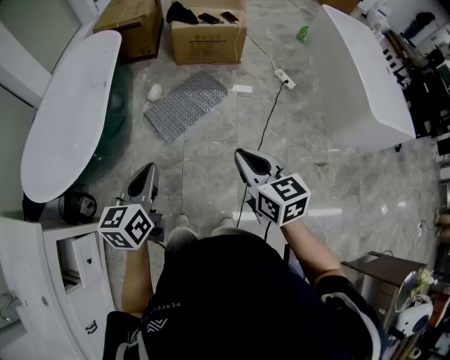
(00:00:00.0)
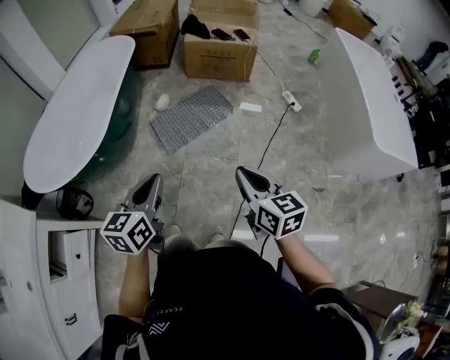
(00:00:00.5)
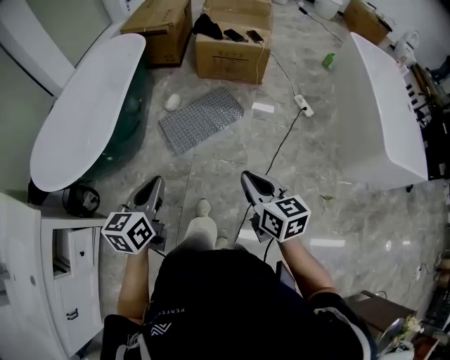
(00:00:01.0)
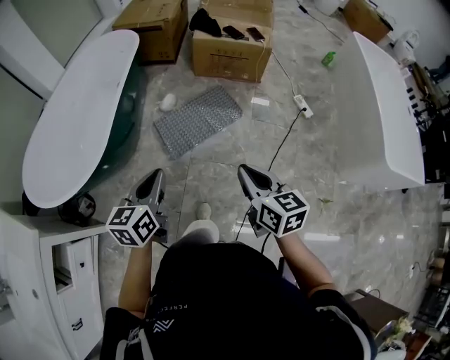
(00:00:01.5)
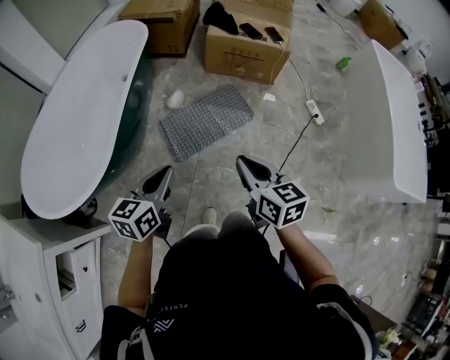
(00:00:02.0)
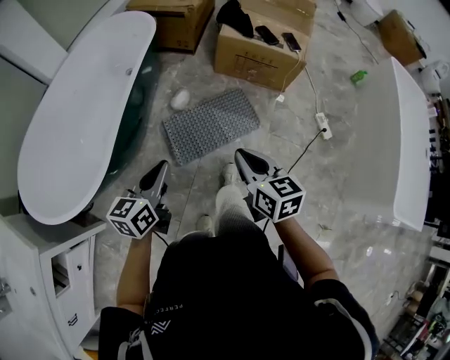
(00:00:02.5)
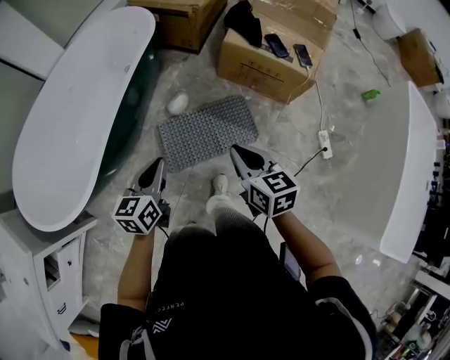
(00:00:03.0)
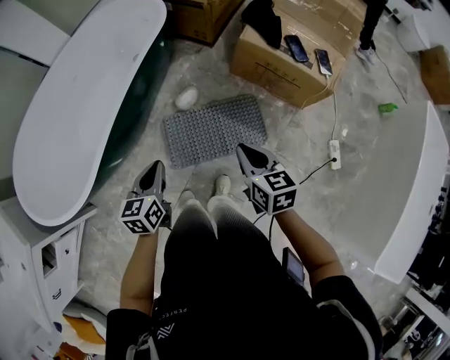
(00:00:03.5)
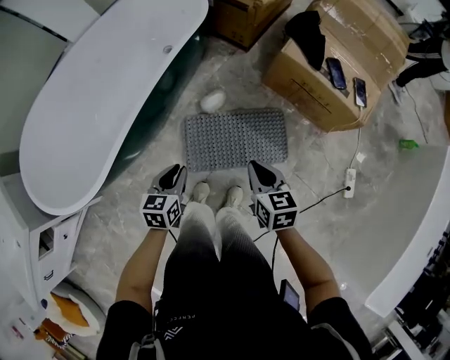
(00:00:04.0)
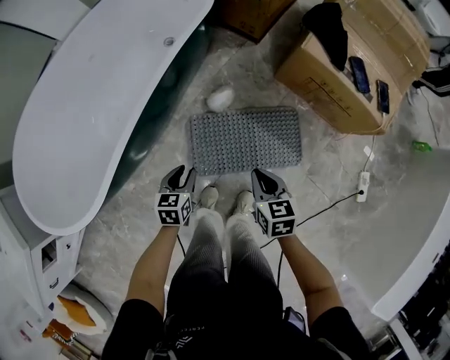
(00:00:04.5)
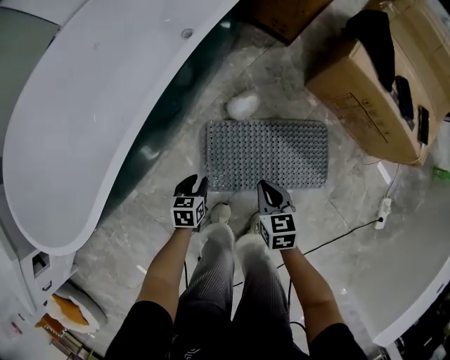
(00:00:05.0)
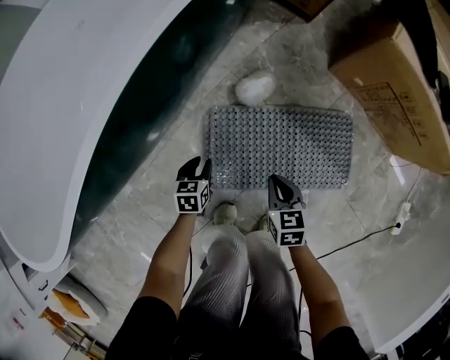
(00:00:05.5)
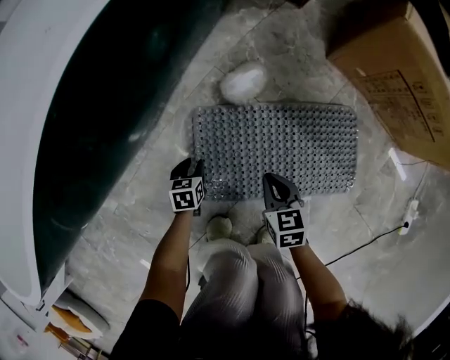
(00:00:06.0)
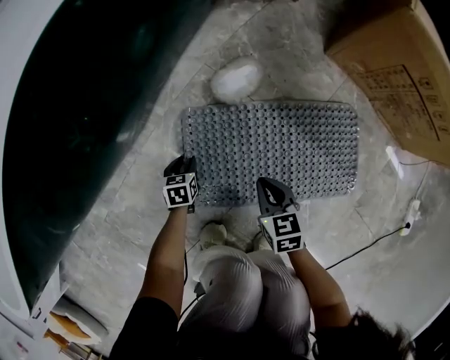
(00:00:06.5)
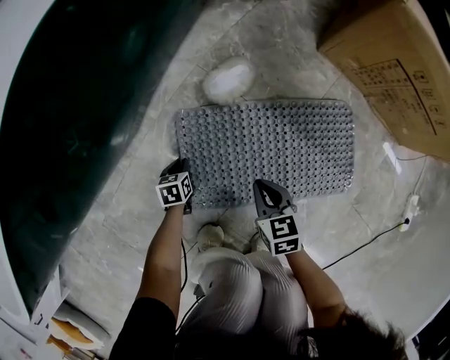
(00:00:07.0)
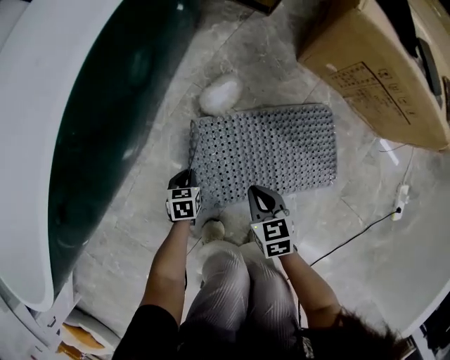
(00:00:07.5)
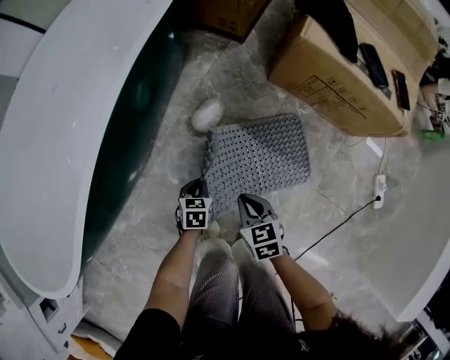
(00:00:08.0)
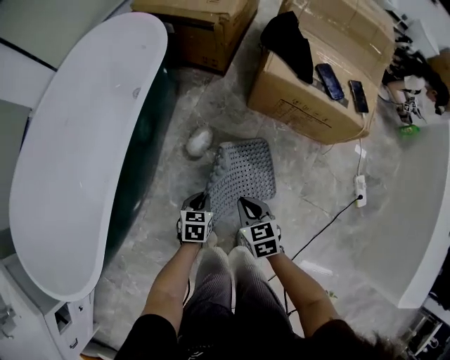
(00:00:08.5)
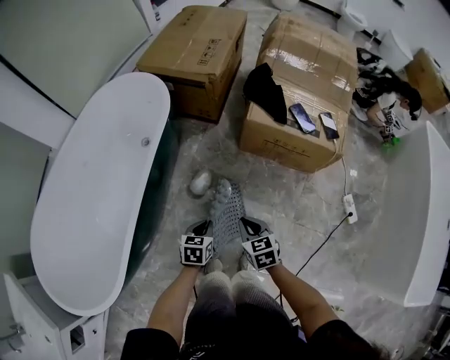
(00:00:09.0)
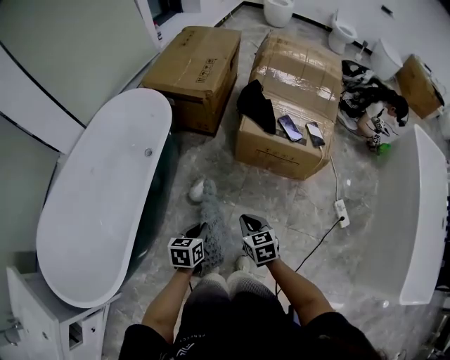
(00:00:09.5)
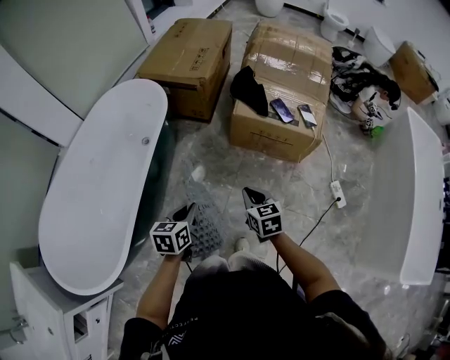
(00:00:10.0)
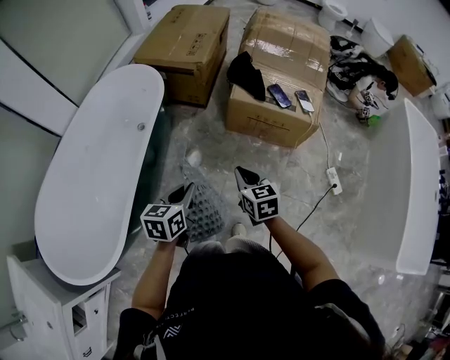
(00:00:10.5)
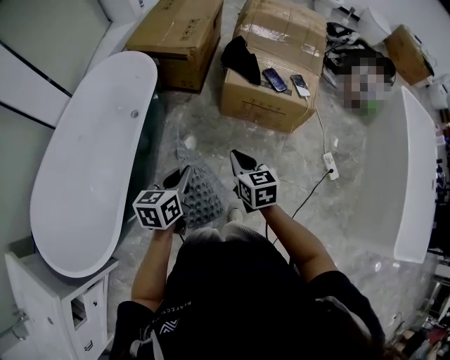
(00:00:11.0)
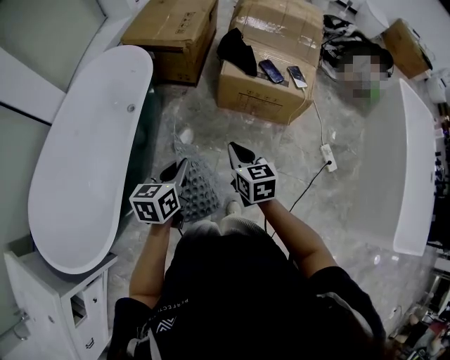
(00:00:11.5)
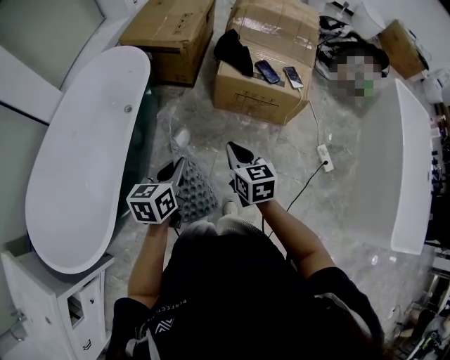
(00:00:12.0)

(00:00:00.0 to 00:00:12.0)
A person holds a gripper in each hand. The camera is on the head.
00:00:00.0 - 00:00:02.0: Both grippers travel together forward, approximately 20 cm.
00:00:02.0 - 00:00:04.0: The left gripper ends up approximately 35 cm from where it was, and rotates about 30 degrees; the right gripper changes place by roughly 40 cm, and swivels about 20 degrees.
00:00:04.0 - 00:00:06.0: Both grippers move downward, about 50 cm. The left gripper changes its angle by some 20 degrees.
00:00:06.0 - 00:00:08.0: The left gripper goes roughly 25 cm upward and to the right, and closes; the right gripper heads upward, covering roughly 20 cm.
00:00:08.0 - 00:00:10.0: The two grippers go roughly 40 cm upward. The left gripper rotates some 30 degrees.
00:00:10.0 - 00:00:12.0: Both grippers travel together upward, some 5 cm.

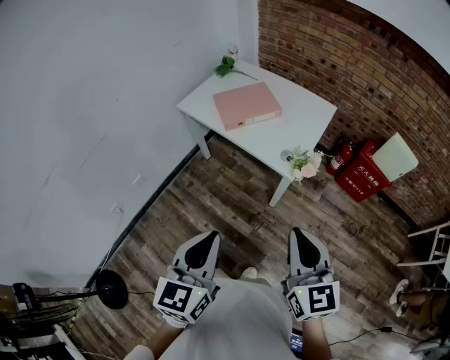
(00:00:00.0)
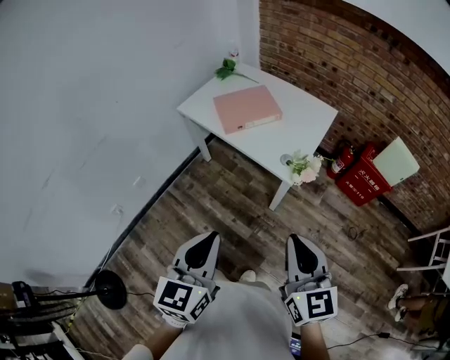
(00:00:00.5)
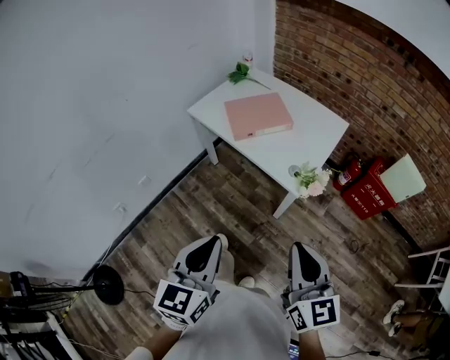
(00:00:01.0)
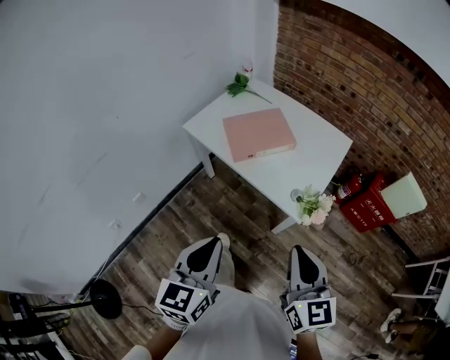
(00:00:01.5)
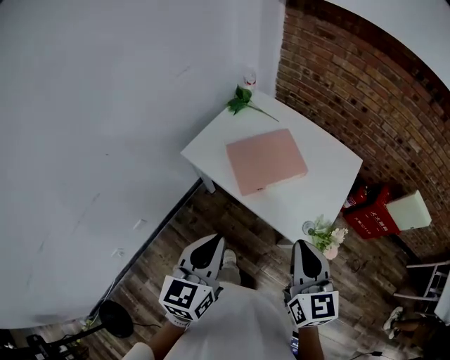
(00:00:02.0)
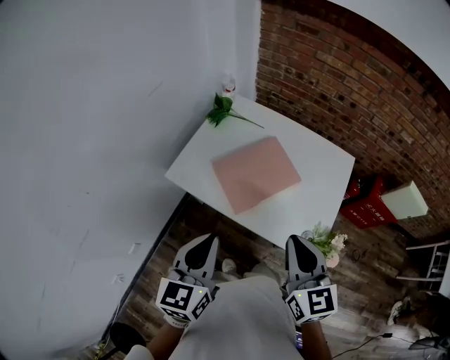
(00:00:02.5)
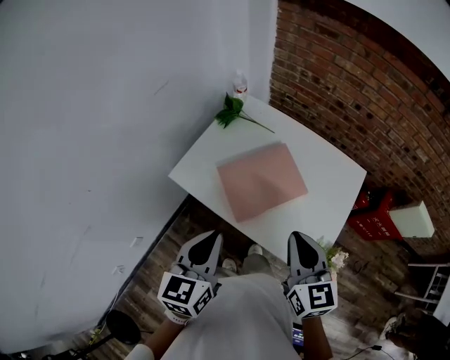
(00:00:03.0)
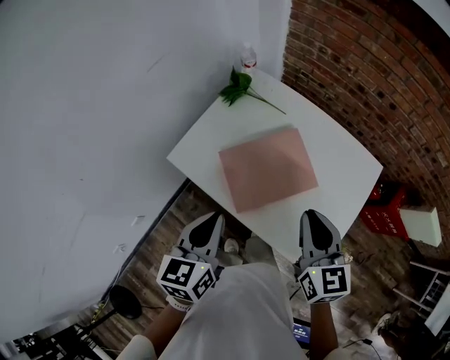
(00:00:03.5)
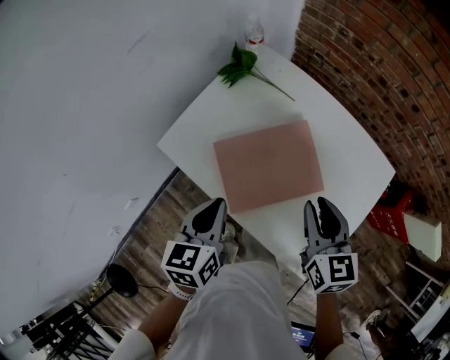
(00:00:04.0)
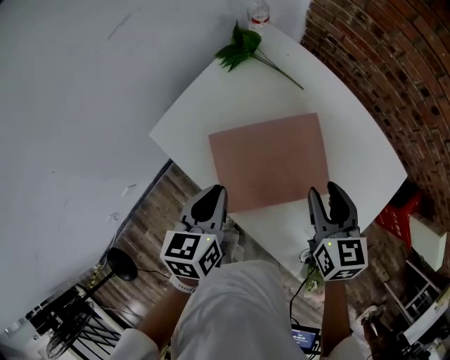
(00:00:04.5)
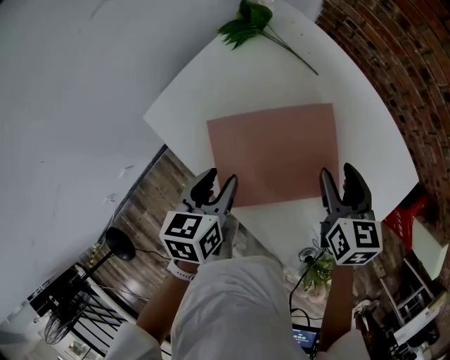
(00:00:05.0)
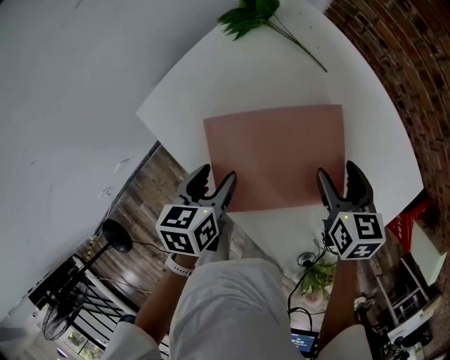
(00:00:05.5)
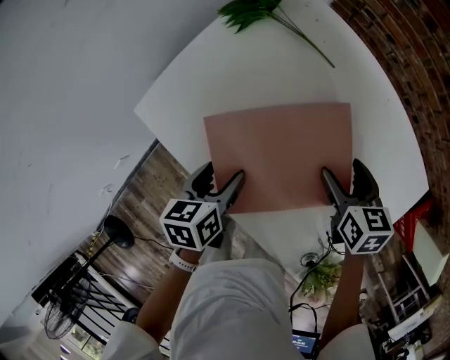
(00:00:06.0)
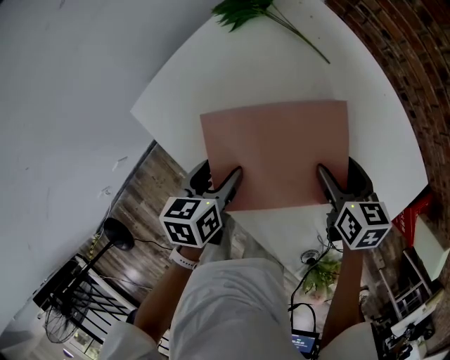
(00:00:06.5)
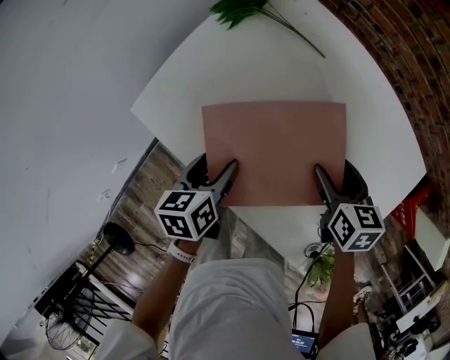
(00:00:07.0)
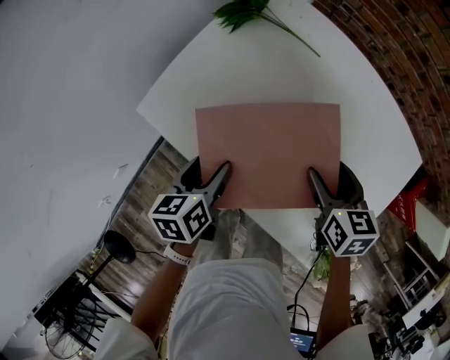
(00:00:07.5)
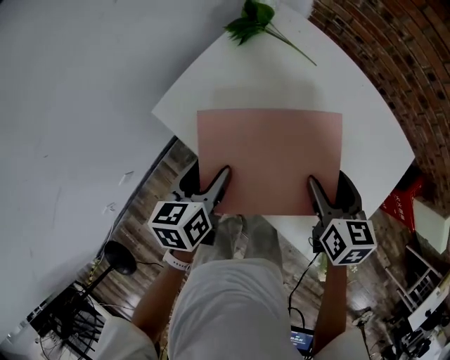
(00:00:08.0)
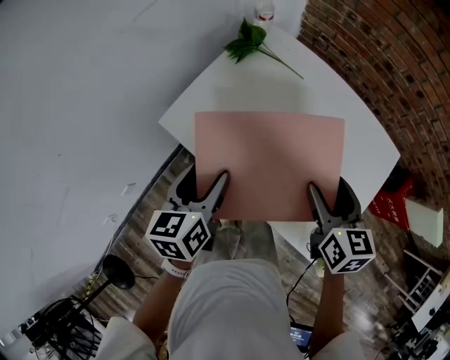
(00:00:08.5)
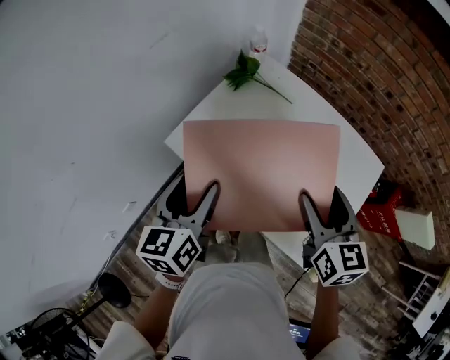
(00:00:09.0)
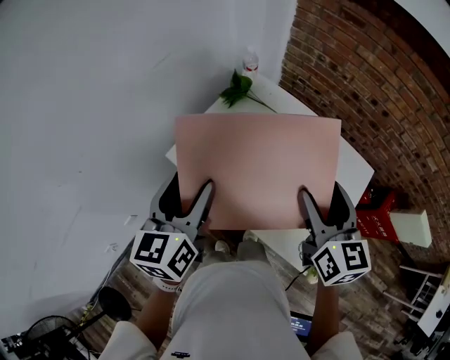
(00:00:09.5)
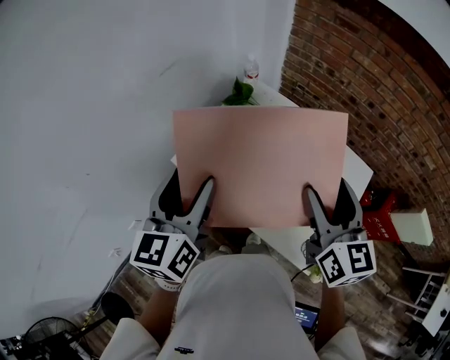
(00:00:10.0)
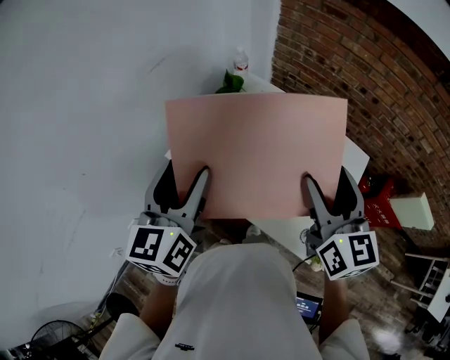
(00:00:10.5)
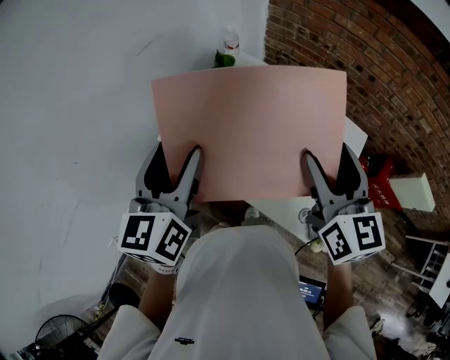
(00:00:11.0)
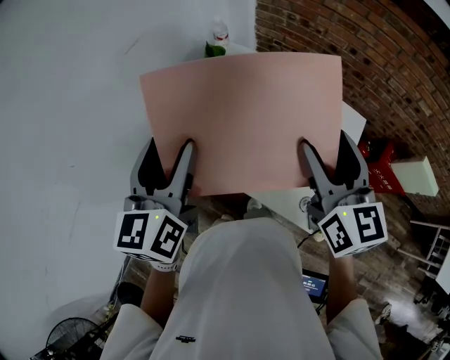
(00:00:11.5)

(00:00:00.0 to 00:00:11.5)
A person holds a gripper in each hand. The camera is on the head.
00:00:00.0 - 00:00:02.0: The two grippers go about 30 cm forward.
00:00:02.0 - 00:00:04.0: The grippers both shift forward and downward by approximately 30 cm. The left gripper swivels about 20 degrees.
00:00:04.0 - 00:00:06.0: The right gripper shifts some 20 cm downward and forward, turns by about 20 degrees, and opens up, while the left gripper is displaced downward by about 20 cm, turns by some 20 degrees, and opens.
00:00:06.0 - 00:00:07.5: The right gripper shifts approximately 5 cm backward.
00:00:07.5 - 00:00:09.5: The grippers both shift upward by some 30 cm. The left gripper swivels roughly 40 degrees. Meanwhile the right gripper turns by approximately 30 degrees.
00:00:09.5 - 00:00:11.5: The left gripper ends up roughly 5 cm from where it was. Meanwhile the right gripper is displaced upward by some 5 cm.

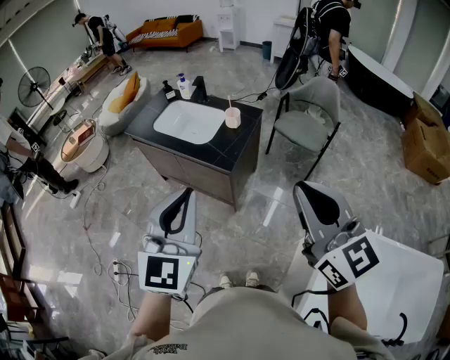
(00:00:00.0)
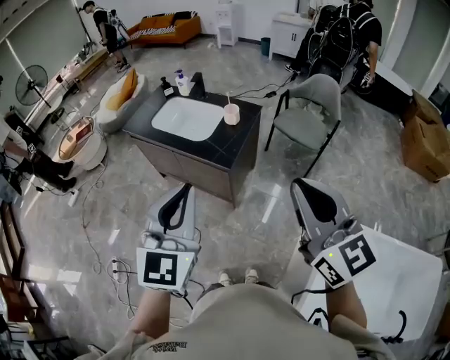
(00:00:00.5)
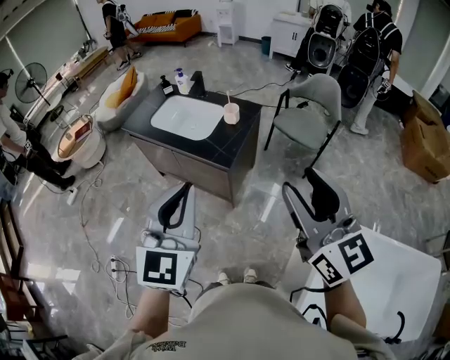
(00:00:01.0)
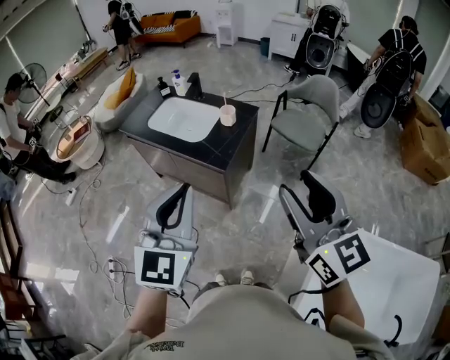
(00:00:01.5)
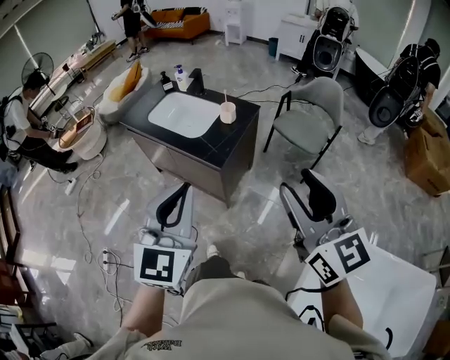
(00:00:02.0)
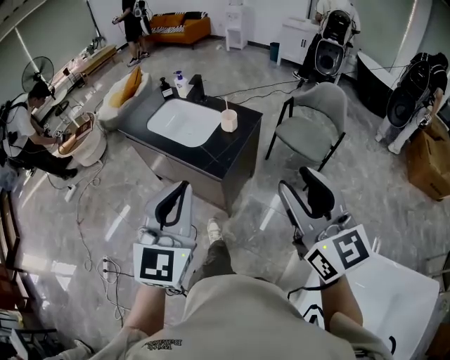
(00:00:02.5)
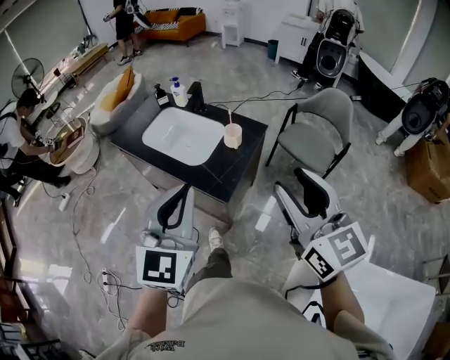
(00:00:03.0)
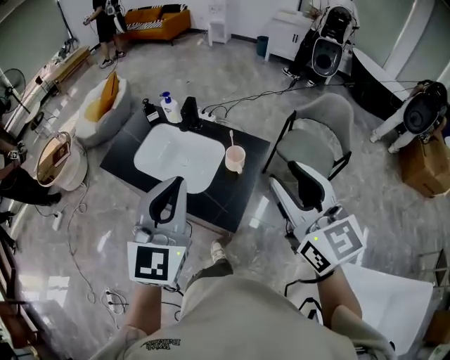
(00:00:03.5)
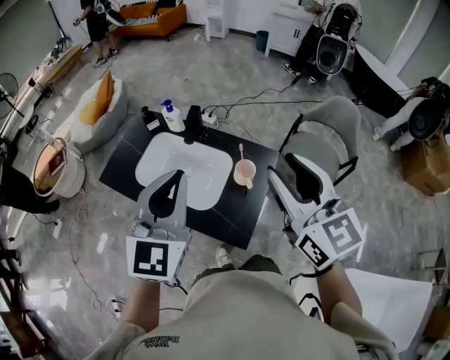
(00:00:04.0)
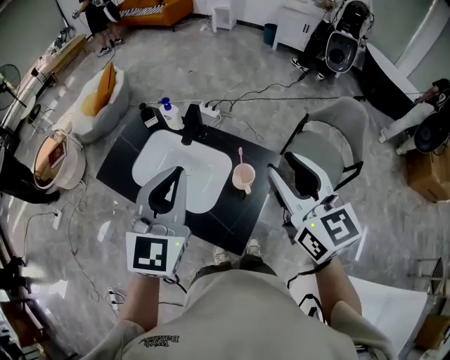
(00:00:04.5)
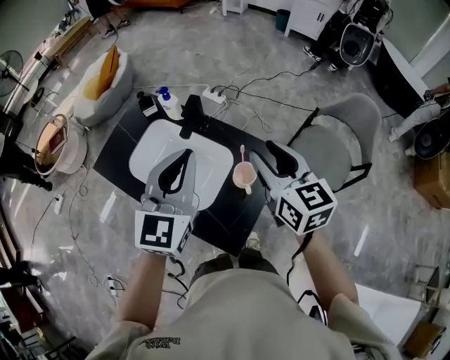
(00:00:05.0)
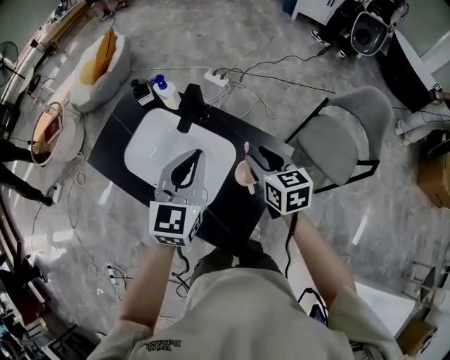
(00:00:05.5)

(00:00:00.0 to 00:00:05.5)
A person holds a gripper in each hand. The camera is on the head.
00:00:00.0 - 00:00:02.0: The left gripper shifts by roughly 5 cm. The right gripper shifts by approximately 5 cm, and opens up.
00:00:02.0 - 00:00:03.5: The grippers both shift forward by some 35 cm.
00:00:03.5 - 00:00:05.5: Both grippers move forward and downward, about 35 cm. The right gripper changes its angle by about 30 degrees.
